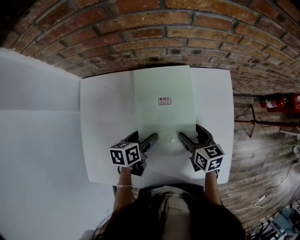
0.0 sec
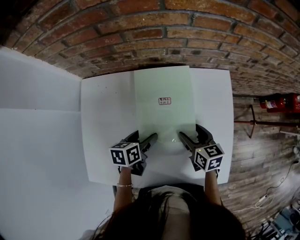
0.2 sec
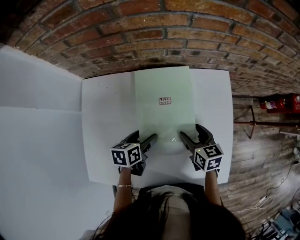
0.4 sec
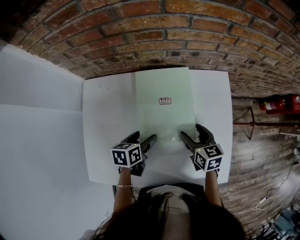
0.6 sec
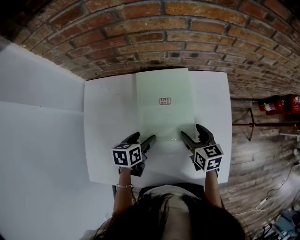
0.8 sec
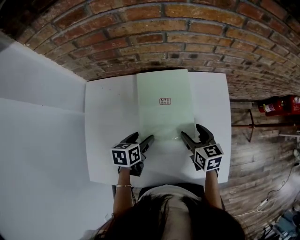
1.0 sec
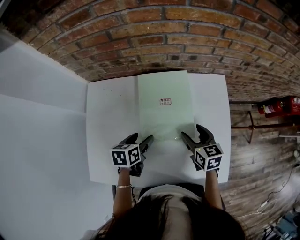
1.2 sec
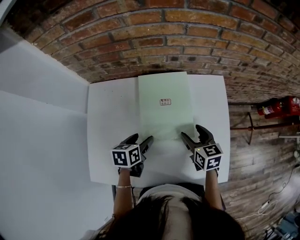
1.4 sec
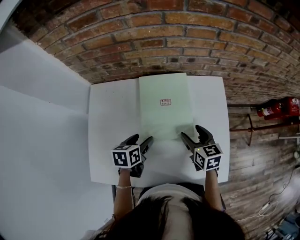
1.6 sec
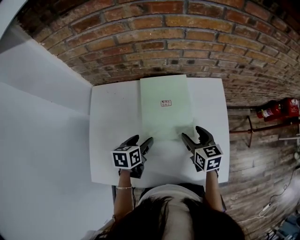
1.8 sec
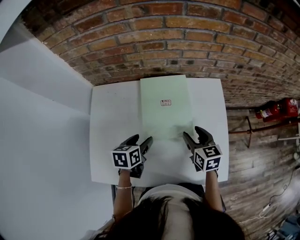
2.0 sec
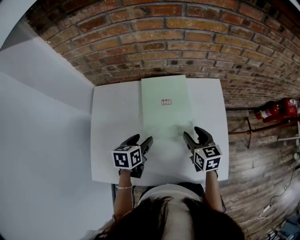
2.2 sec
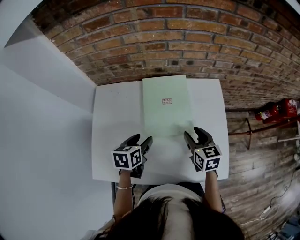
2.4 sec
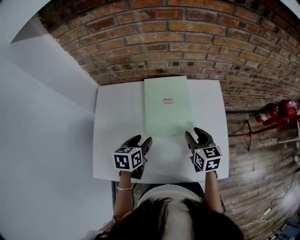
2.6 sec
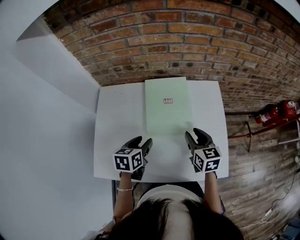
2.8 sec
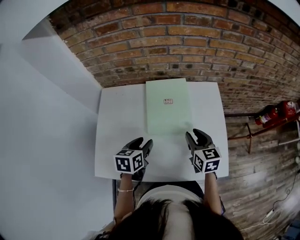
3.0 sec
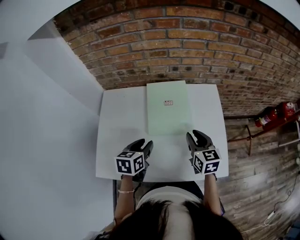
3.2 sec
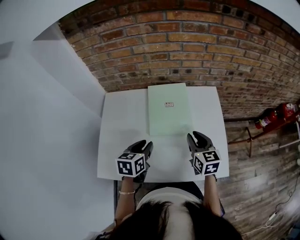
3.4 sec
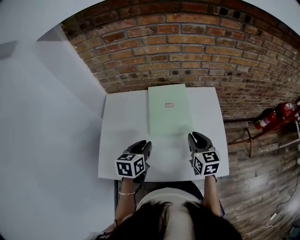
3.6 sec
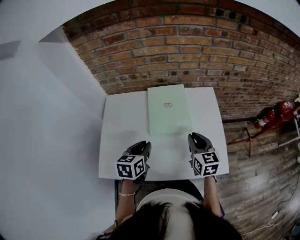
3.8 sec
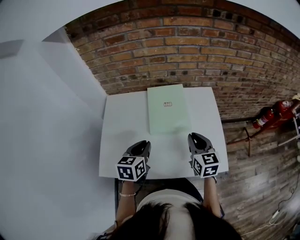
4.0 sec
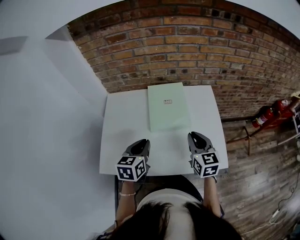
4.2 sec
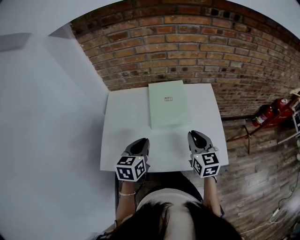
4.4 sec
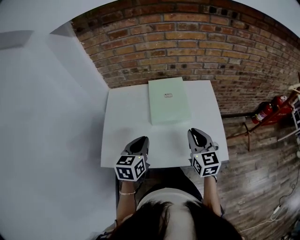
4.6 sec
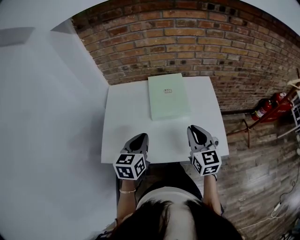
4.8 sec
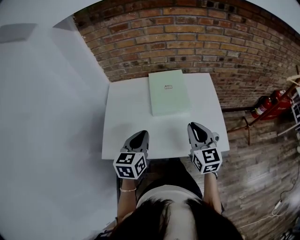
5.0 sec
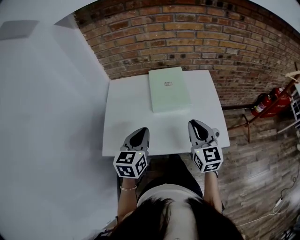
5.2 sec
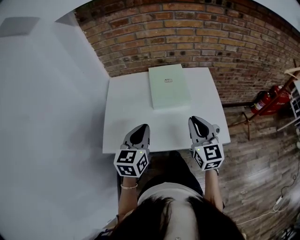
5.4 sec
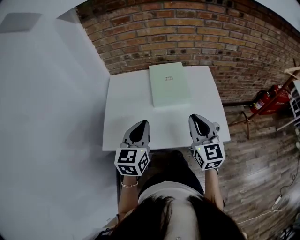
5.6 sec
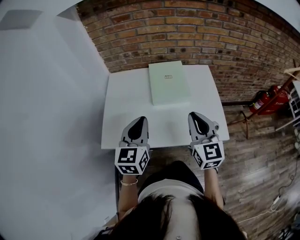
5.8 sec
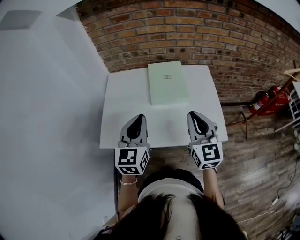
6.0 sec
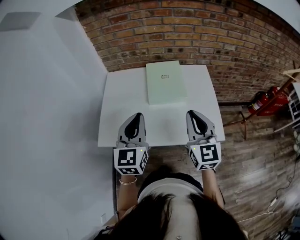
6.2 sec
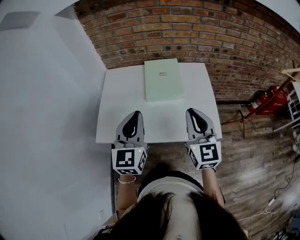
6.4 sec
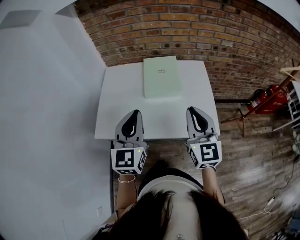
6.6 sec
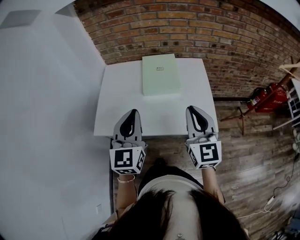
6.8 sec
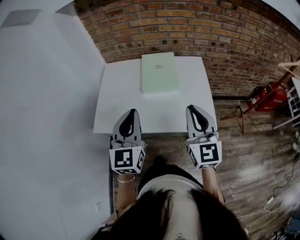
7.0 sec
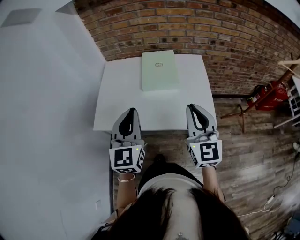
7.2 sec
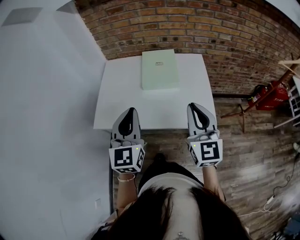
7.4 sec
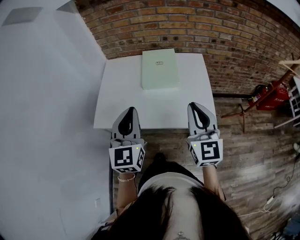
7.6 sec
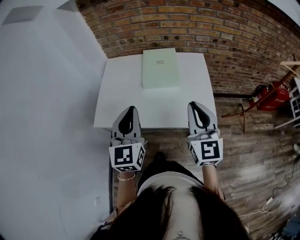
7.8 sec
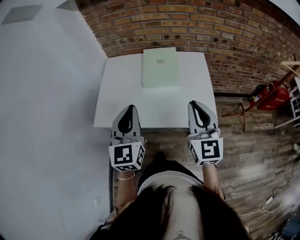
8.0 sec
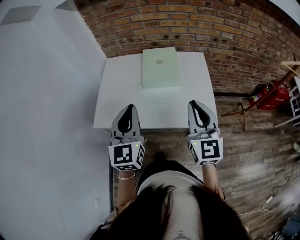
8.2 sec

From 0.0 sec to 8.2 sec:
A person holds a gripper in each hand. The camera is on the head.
From 0.0 sec to 1.6 sec: The left gripper changes place by about 5 cm.
From 1.6 sec to 3.2 sec: The two grippers go roughly 10 cm upward and backward. The right gripper closes up; the left gripper closes up.
From 3.2 sec to 5.0 sec: Both grippers travel together backward and upward, about 15 cm. The left gripper swivels about 20 degrees, and closes its fingers.
From 5.0 sec to 6.6 sec: Both grippers travel together upward and backward, roughly 10 cm. The left gripper turns by about 30 degrees.
From 6.6 sec to 8.2 sec: The grippers stay close to where they were, moving slightly.

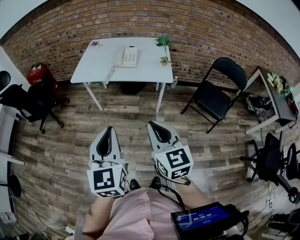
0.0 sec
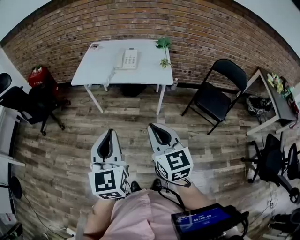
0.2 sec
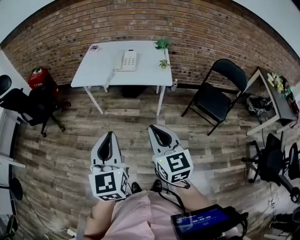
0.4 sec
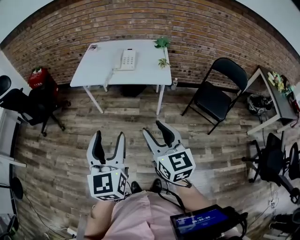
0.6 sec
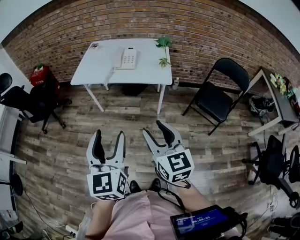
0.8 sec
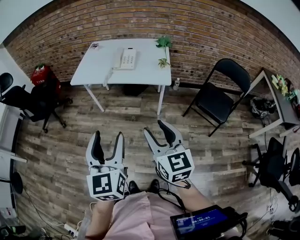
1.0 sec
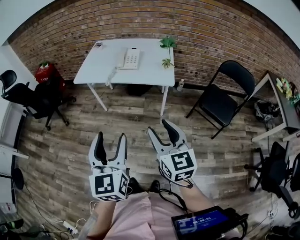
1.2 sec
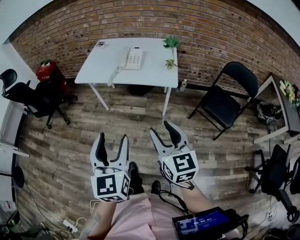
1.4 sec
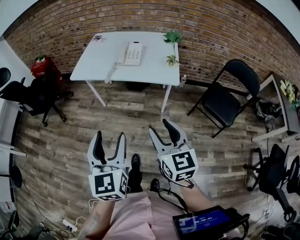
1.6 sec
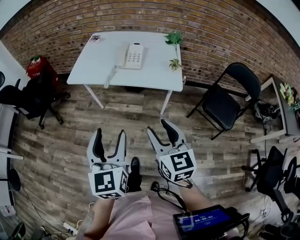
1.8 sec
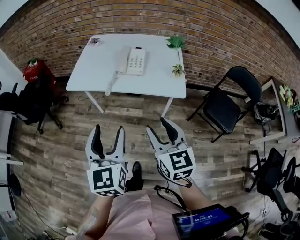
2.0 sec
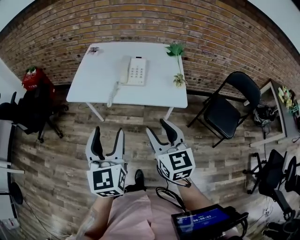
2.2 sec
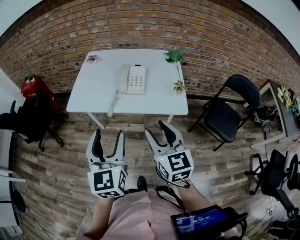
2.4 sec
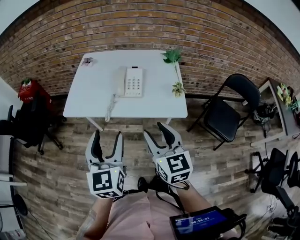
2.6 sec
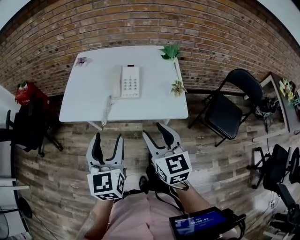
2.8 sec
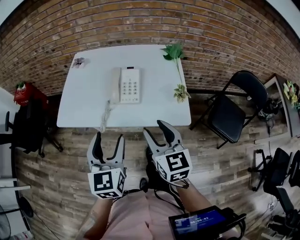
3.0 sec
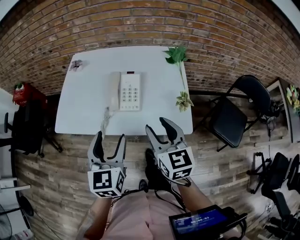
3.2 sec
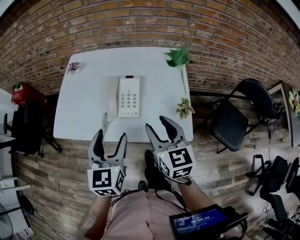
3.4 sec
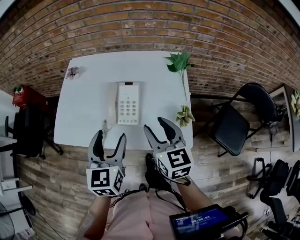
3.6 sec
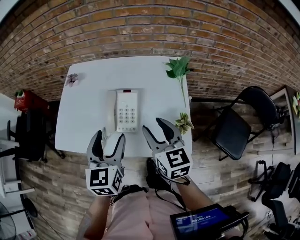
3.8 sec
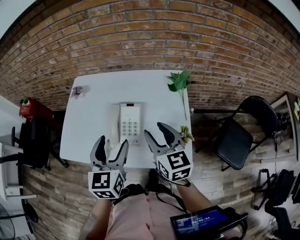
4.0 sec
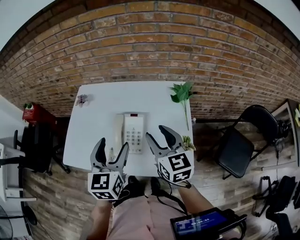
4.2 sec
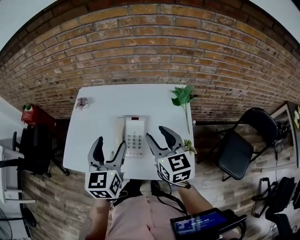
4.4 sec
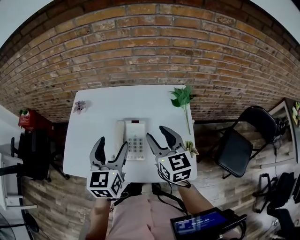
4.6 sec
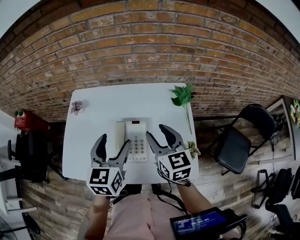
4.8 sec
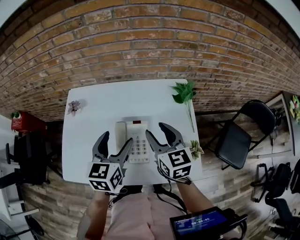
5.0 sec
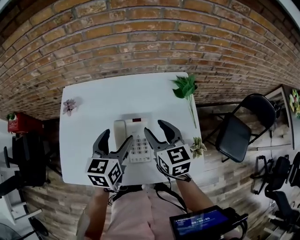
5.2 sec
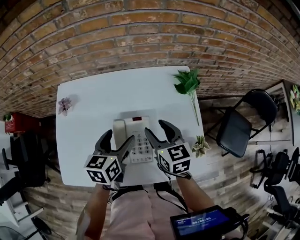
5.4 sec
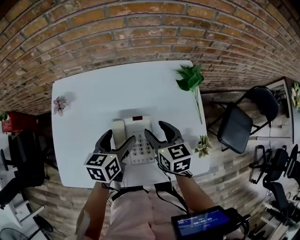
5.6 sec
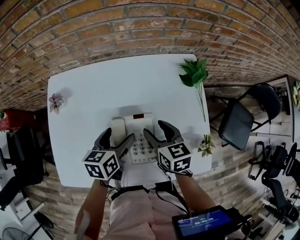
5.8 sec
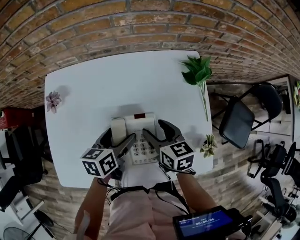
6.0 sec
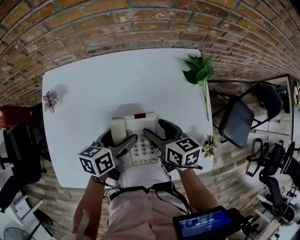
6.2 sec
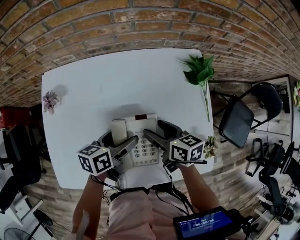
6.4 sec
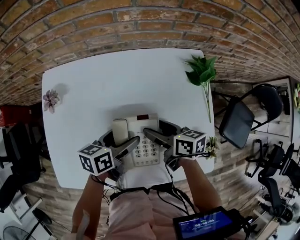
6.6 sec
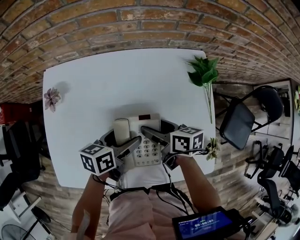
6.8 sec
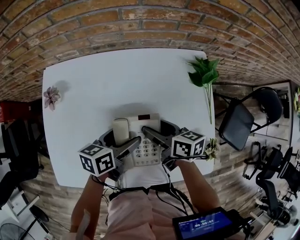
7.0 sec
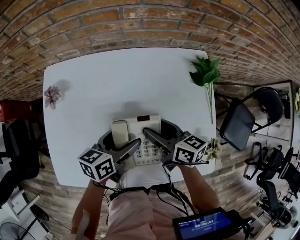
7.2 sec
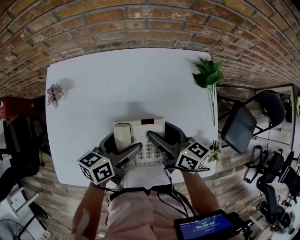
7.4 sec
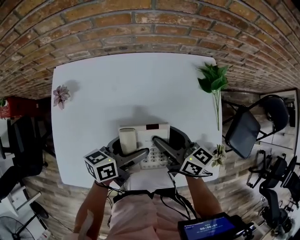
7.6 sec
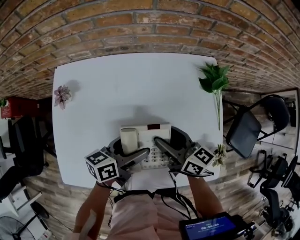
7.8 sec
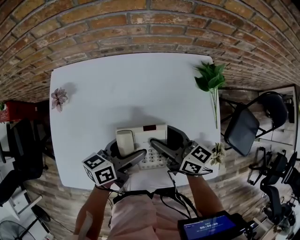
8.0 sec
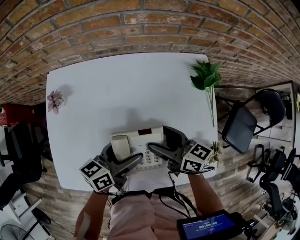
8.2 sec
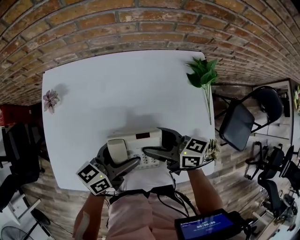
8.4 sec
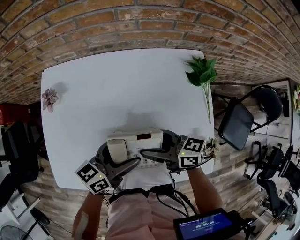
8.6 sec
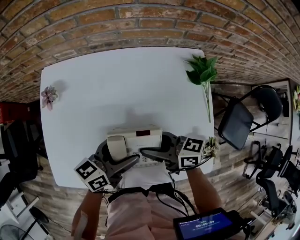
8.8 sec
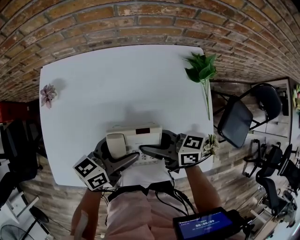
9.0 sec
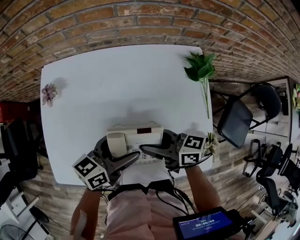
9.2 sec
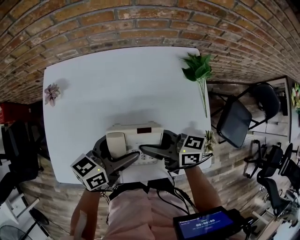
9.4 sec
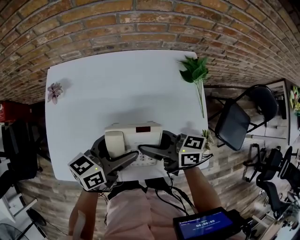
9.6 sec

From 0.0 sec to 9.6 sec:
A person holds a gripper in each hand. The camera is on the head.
From 0.0 sec to 1.6 sec: The right gripper heads to the right and forward, covering some 10 cm, and opens. The left gripper shifts by approximately 5 cm, and opens up.
From 1.6 sec to 3.2 sec: The grippers both shift forward by some 35 cm.
From 3.2 sec to 4.8 sec: The two grippers go approximately 20 cm forward.
From 4.8 sec to 6.4 sec: The two grippers go about 20 cm downward. The left gripper changes its angle by roughly 50 degrees, while the right gripper rotates roughly 40 degrees.
From 6.4 sec to 8.0 sec: The right gripper swivels about 20 degrees.
From 8.0 sec to 9.6 sec: The left gripper shifts approximately 5 cm upward. The right gripper goes roughly 5 cm backward, and swivels some 20 degrees.

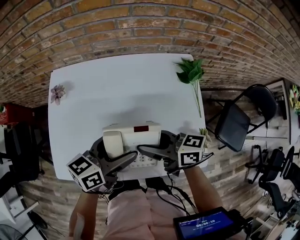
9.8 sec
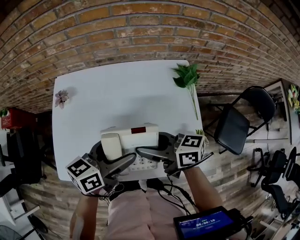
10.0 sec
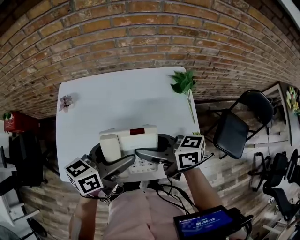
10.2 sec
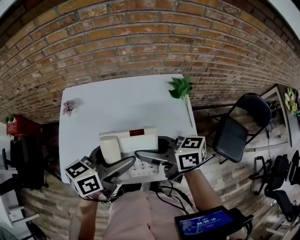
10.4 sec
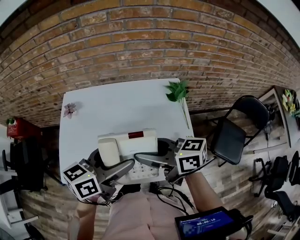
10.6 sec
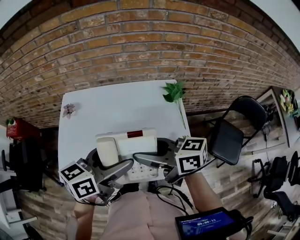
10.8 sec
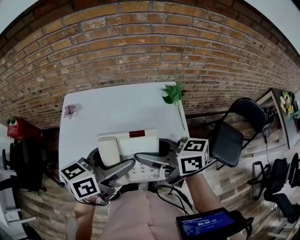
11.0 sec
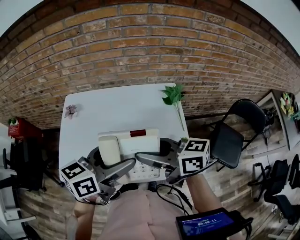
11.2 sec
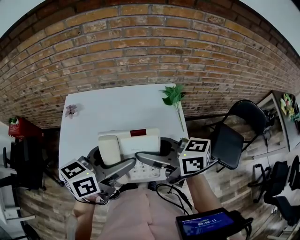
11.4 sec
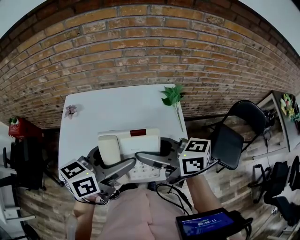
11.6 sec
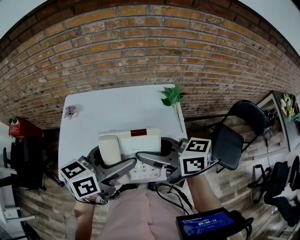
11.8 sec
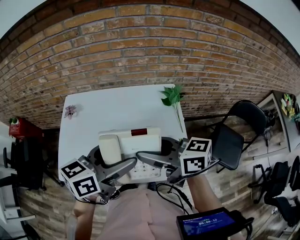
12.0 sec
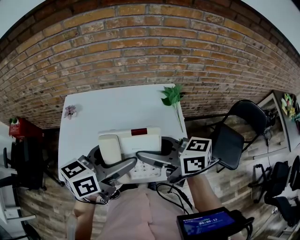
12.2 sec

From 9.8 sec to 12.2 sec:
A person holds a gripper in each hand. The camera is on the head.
From 9.8 sec to 11.0 sec: Both grippers travel together upward and backward, some 15 cm.
From 11.0 sec to 12.2 sec: The grippers make only small movements.

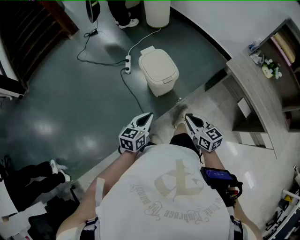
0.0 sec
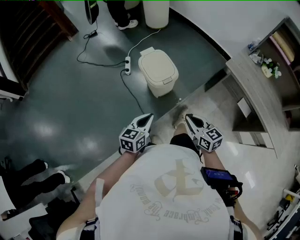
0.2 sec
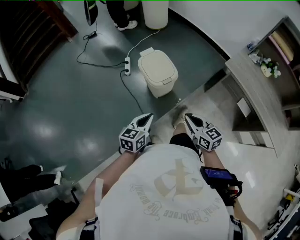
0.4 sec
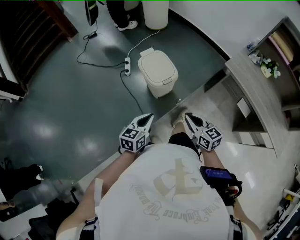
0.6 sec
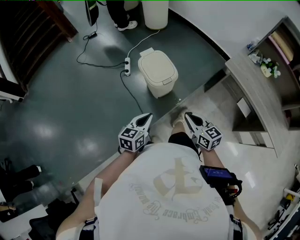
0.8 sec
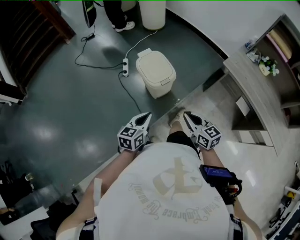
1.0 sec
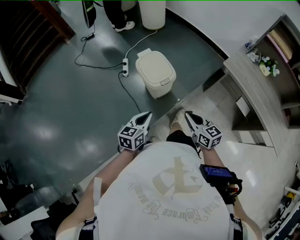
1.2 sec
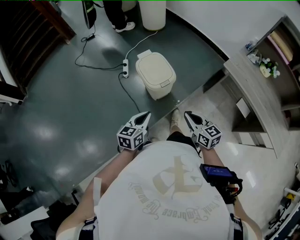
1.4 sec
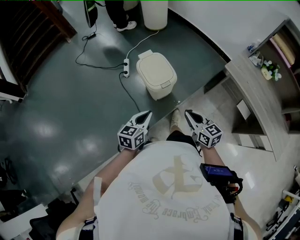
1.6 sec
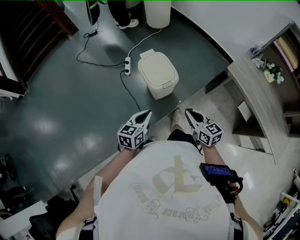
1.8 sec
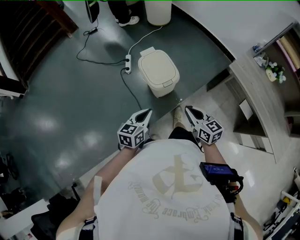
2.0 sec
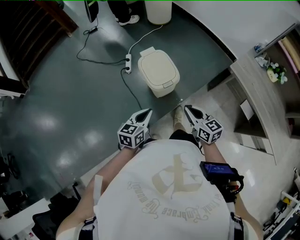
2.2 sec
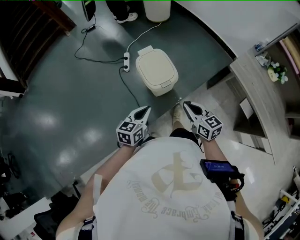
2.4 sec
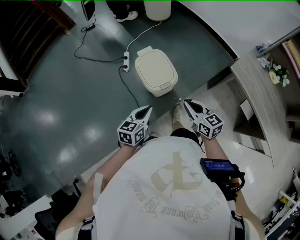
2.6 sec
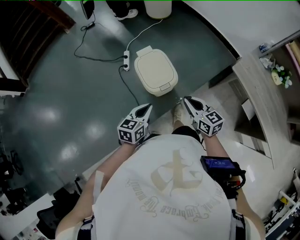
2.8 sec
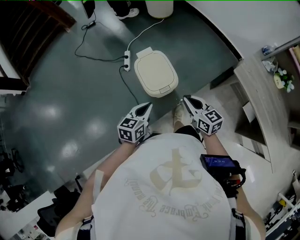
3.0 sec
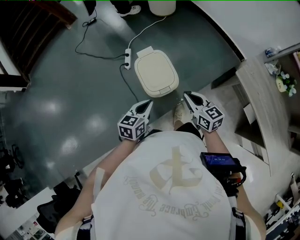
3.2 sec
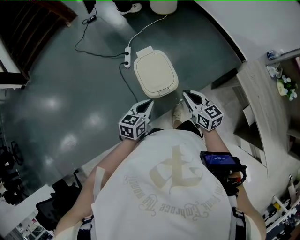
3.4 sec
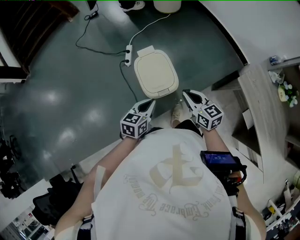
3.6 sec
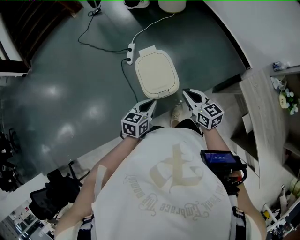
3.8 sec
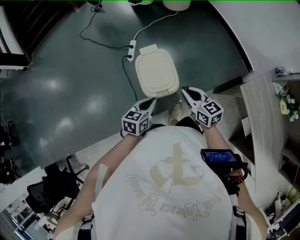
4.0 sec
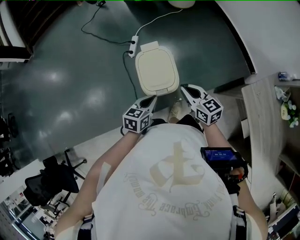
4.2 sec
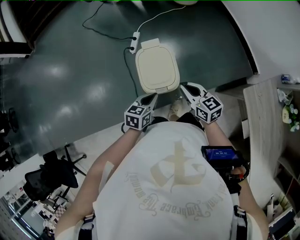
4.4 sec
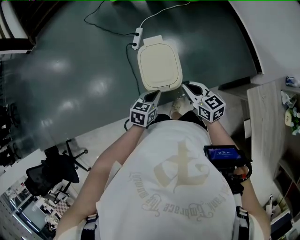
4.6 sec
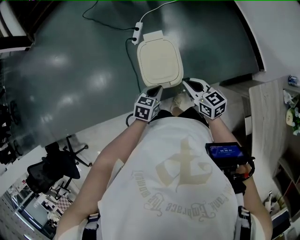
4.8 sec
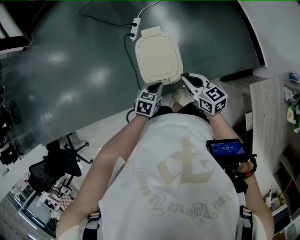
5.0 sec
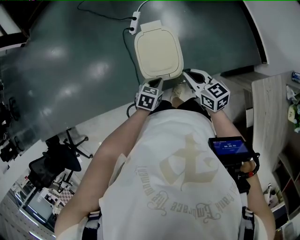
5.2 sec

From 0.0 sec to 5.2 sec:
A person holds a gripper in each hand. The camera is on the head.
From 0.0 sec to 1.8 sec: Both grippers travel together forward, roughly 5 cm.
From 1.8 sec to 3.4 sec: The left gripper travels forward and to the right by about 15 cm, while the right gripper shifts roughly 20 cm forward.
From 3.4 sec to 5.2 sec: The left gripper shifts some 20 cm downward and to the right, and turns by approximately 30 degrees; the right gripper goes some 15 cm forward and downward, and swivels approximately 20 degrees.
